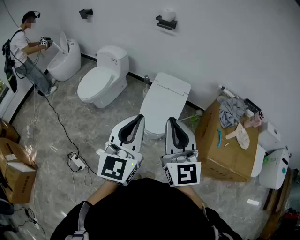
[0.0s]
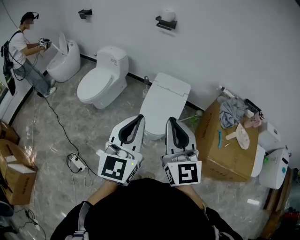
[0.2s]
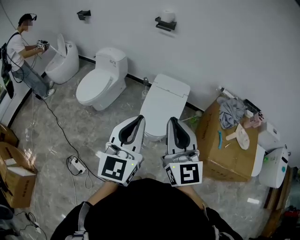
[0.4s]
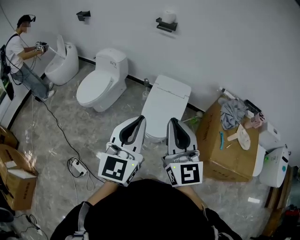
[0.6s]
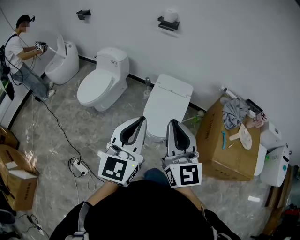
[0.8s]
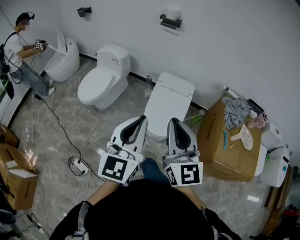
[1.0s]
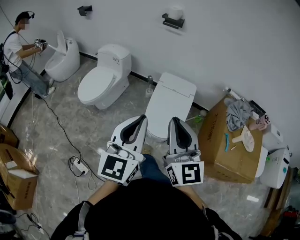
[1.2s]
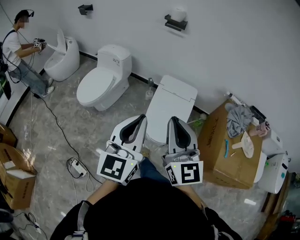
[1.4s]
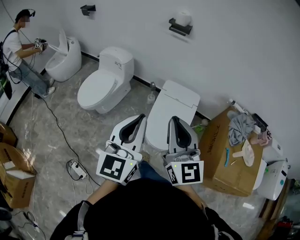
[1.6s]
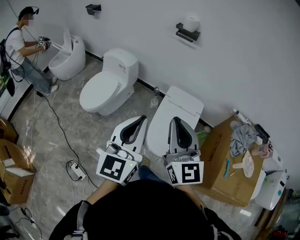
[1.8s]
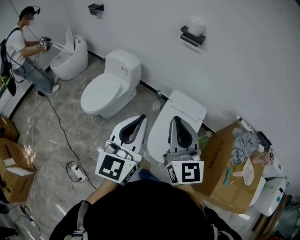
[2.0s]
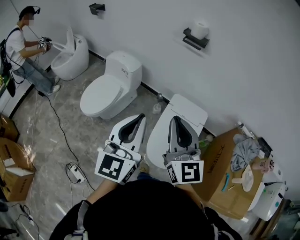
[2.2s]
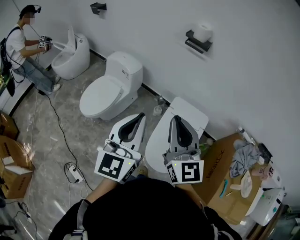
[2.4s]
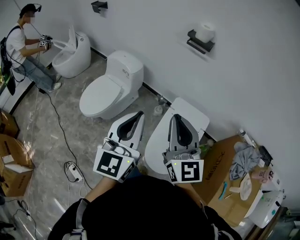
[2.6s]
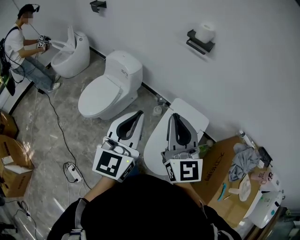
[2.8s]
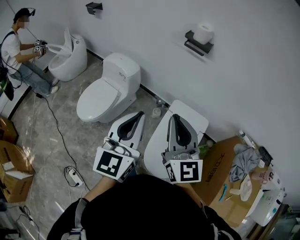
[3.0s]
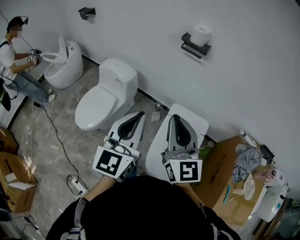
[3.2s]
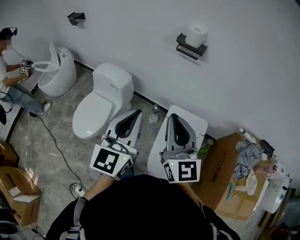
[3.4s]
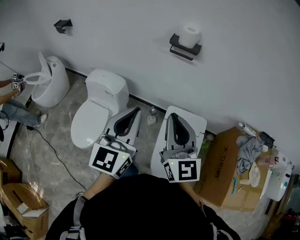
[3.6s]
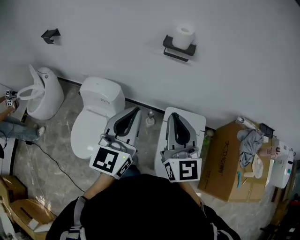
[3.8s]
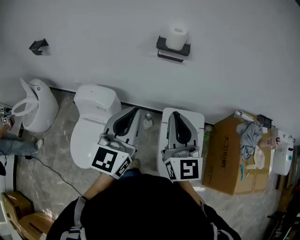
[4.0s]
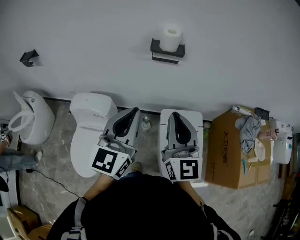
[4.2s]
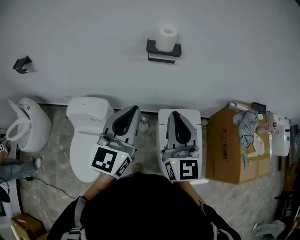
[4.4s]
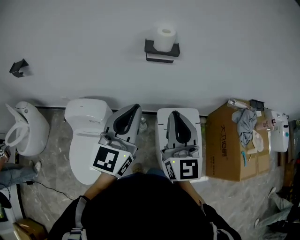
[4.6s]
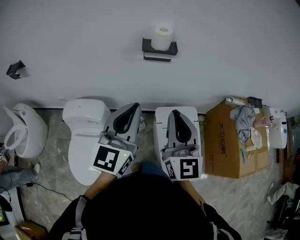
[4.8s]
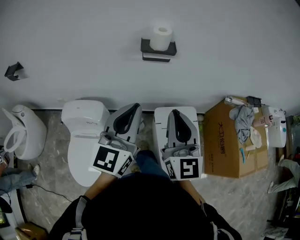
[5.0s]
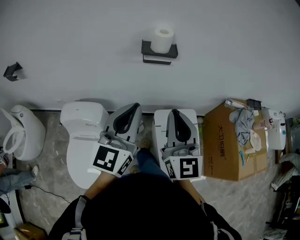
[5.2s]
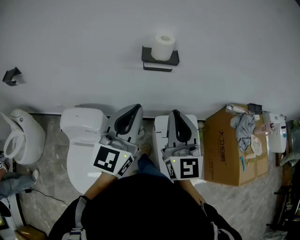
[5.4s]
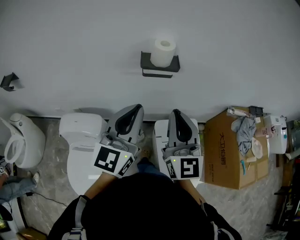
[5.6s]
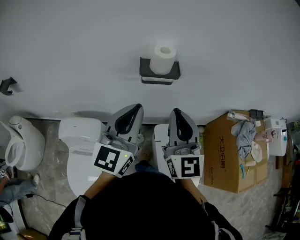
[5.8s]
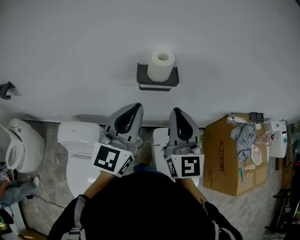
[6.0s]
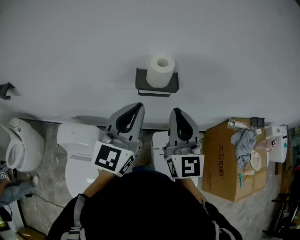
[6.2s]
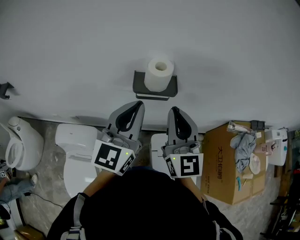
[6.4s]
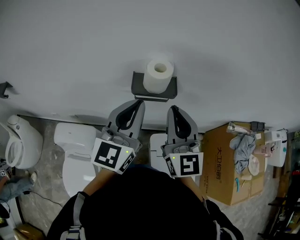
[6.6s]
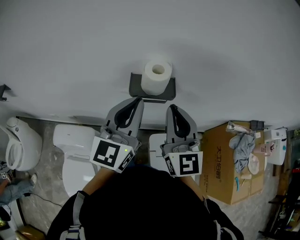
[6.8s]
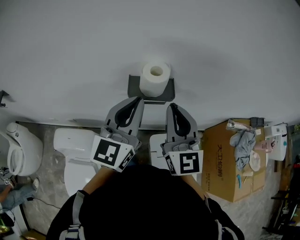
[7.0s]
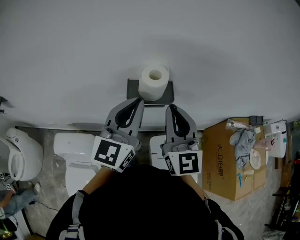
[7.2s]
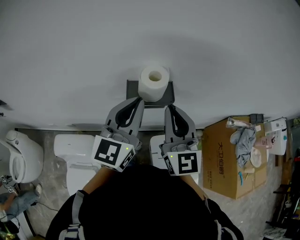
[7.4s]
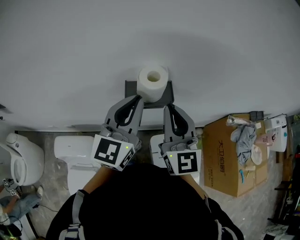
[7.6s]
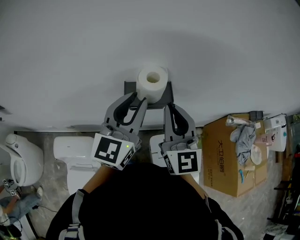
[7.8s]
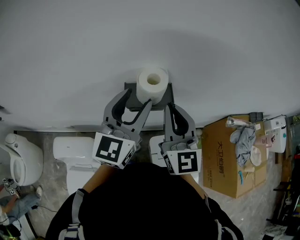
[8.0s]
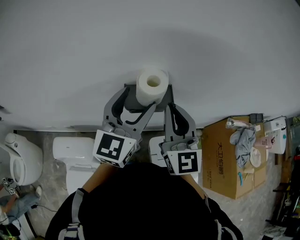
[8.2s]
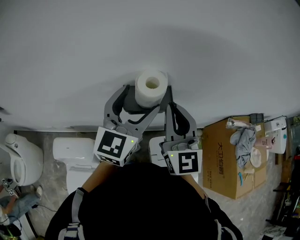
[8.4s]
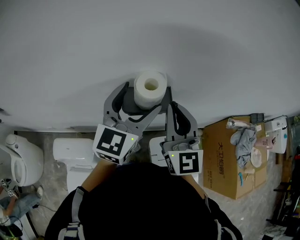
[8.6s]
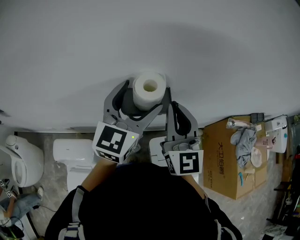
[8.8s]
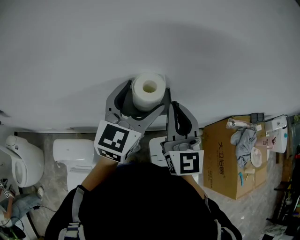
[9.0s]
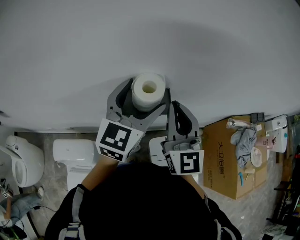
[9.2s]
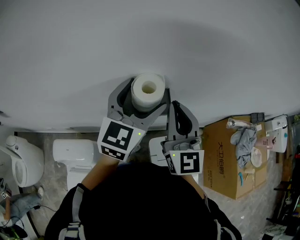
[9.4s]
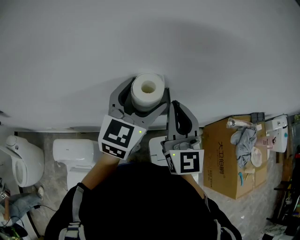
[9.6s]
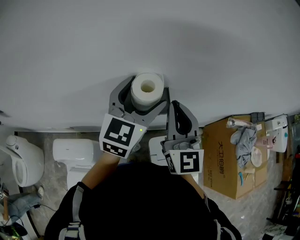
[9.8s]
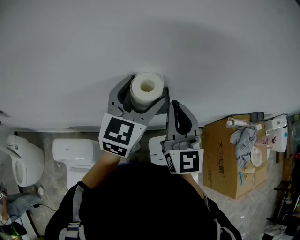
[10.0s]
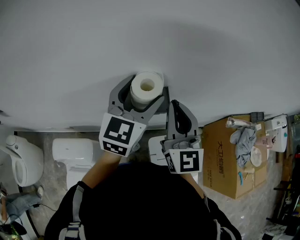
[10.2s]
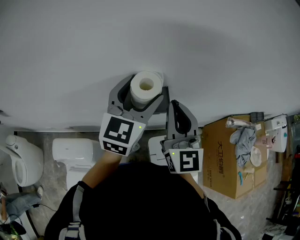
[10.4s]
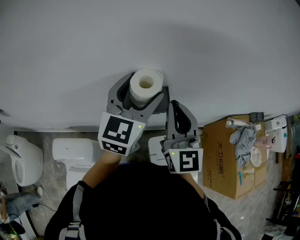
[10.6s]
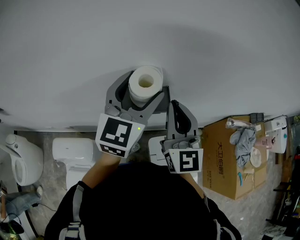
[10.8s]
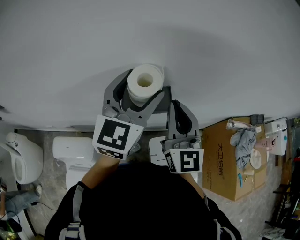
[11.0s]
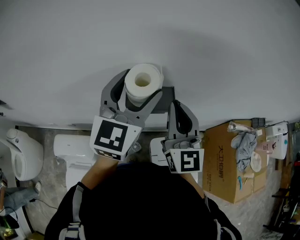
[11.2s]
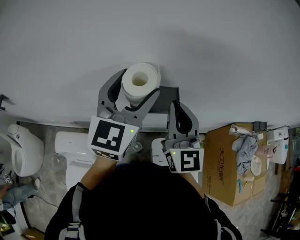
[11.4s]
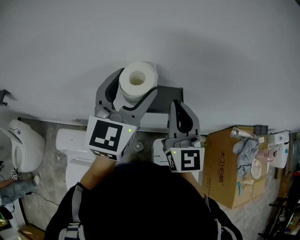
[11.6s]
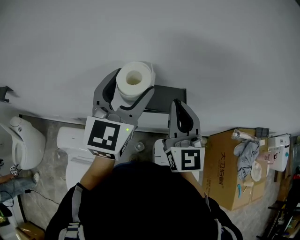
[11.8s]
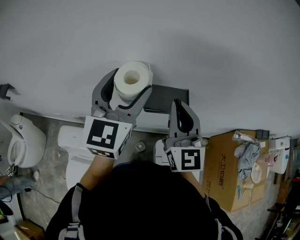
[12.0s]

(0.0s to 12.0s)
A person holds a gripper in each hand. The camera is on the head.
0.0s - 1.6s: Both grippers move forward and to the left, approximately 20 cm.
1.6s - 3.0s: The grippers both shift forward by approximately 25 cm.
3.0s - 4.4s: The left gripper changes place by roughly 30 cm, and changes its angle by roughly 30 degrees, while the right gripper changes place by some 20 cm, and changes its angle by roughly 30 degrees.
4.4s - 6.0s: The two grippers go some 20 cm forward.
6.0s - 7.6s: The grippers both shift forward by some 10 cm.
7.6s - 9.0s: The left gripper goes about 5 cm forward, and opens.
9.0s - 10.4s: The grippers move only a little.
10.4s - 12.0s: The right gripper travels to the left by some 5 cm; the left gripper shifts about 10 cm to the left.

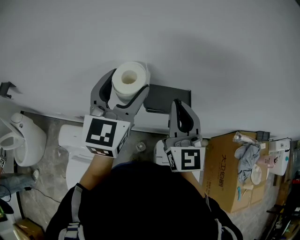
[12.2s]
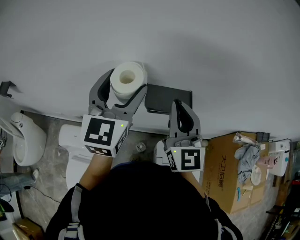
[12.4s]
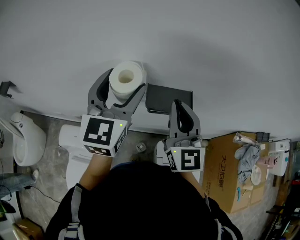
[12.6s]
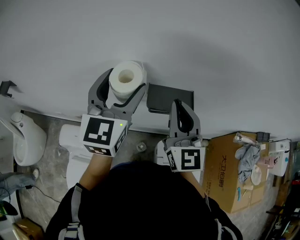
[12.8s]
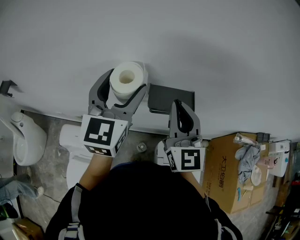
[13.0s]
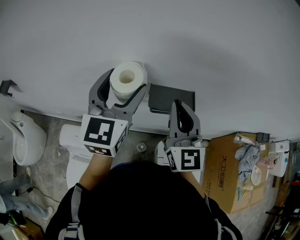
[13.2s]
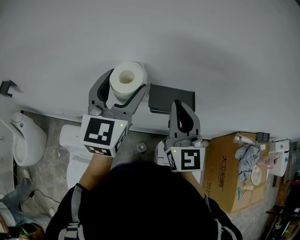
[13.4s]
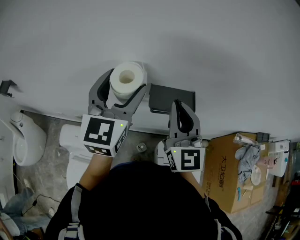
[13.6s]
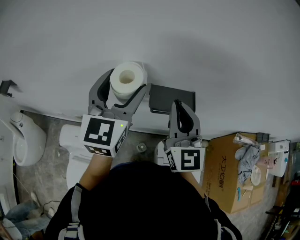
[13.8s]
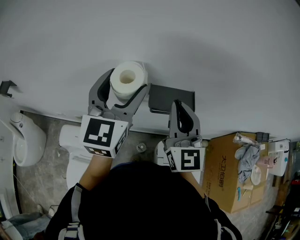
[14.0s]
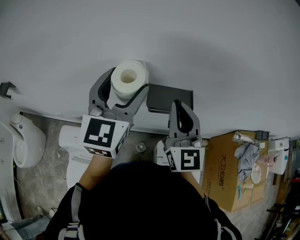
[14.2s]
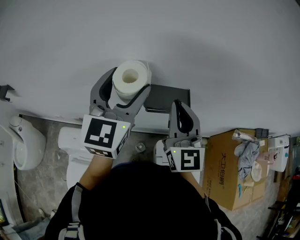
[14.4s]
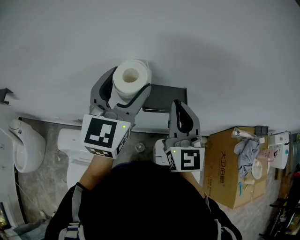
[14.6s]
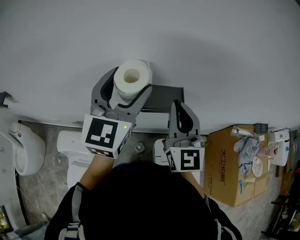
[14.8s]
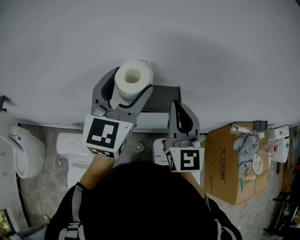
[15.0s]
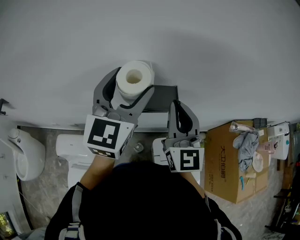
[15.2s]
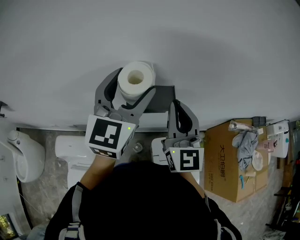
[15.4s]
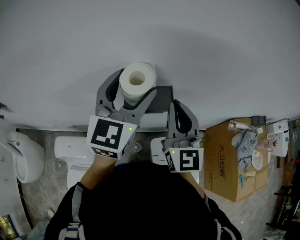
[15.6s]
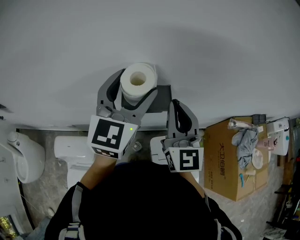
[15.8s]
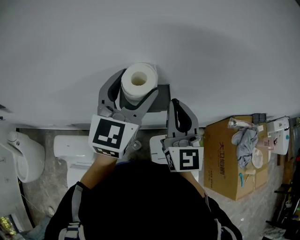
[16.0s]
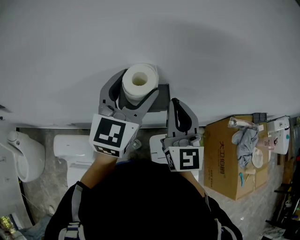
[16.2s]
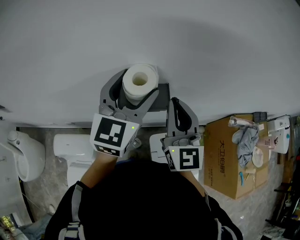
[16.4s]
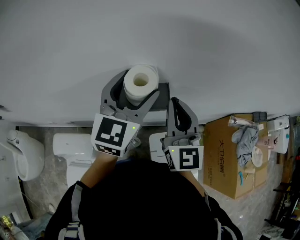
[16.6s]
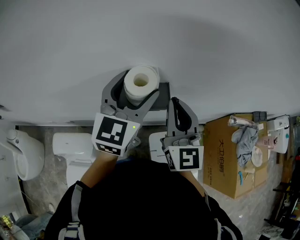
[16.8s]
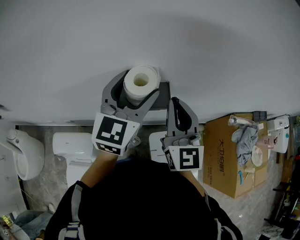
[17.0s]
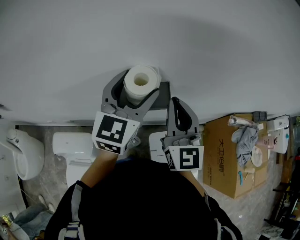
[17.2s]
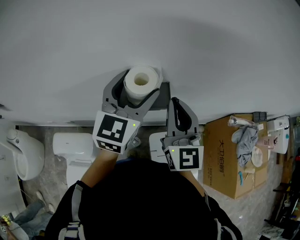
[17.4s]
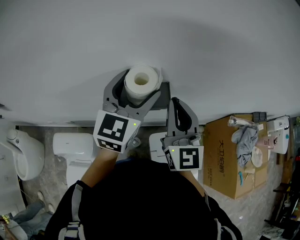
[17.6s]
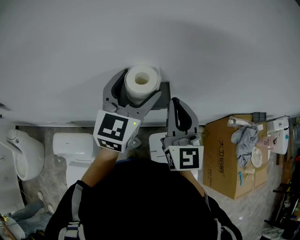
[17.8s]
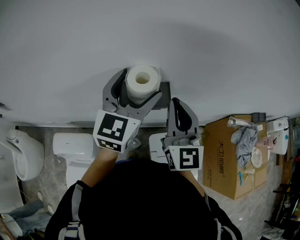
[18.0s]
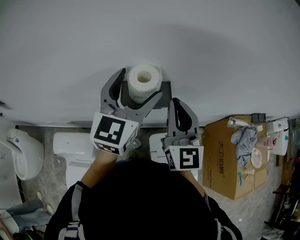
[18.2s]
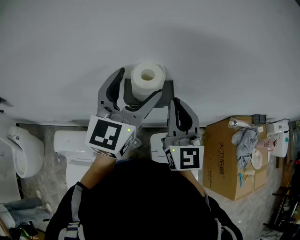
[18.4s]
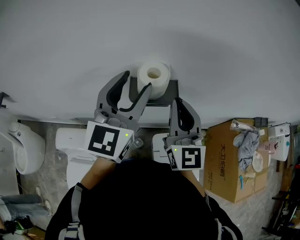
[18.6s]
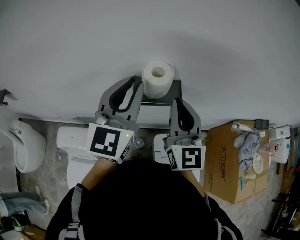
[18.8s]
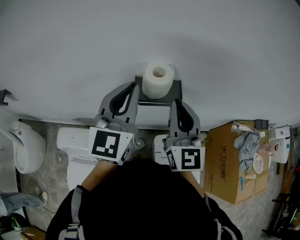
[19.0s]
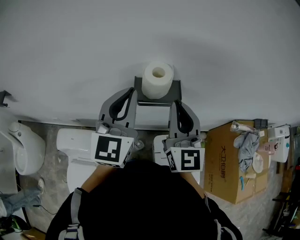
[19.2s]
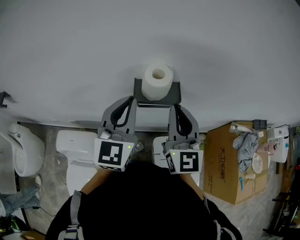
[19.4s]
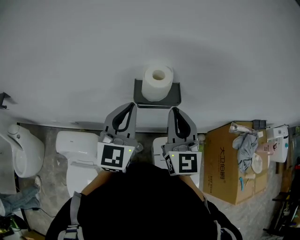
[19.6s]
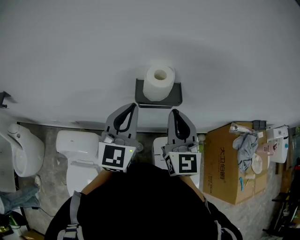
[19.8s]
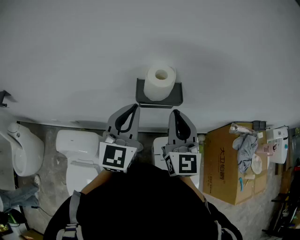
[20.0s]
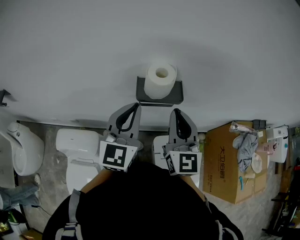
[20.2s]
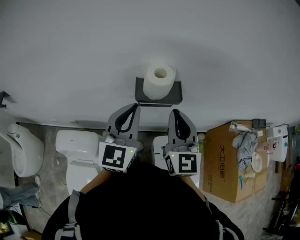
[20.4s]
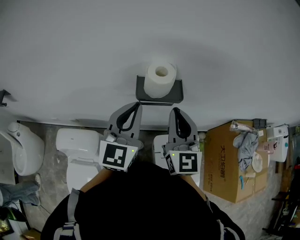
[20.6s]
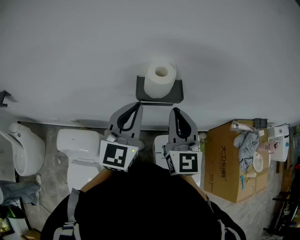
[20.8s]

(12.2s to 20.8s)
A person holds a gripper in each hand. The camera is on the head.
12.2s - 13.6s: The grippers stay close to where they were, moving slightly.
13.6s - 15.0s: The grippers both shift to the right by roughly 5 cm.
15.0s - 16.6s: The left gripper shifts approximately 5 cm to the right.
16.6s - 18.0s: The two grippers keep their place.
18.0s - 19.4s: The left gripper heads backward and to the left, covering some 10 cm, and closes its fingers; the right gripper changes place by roughly 5 cm.
19.4s - 20.8s: The grippers make only small movements.

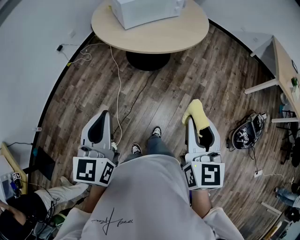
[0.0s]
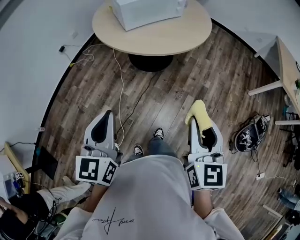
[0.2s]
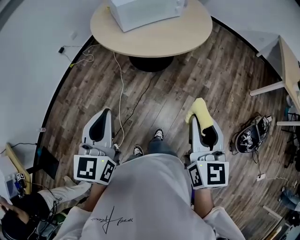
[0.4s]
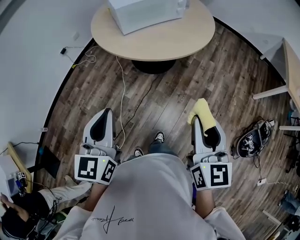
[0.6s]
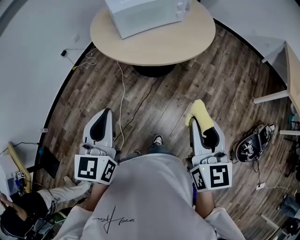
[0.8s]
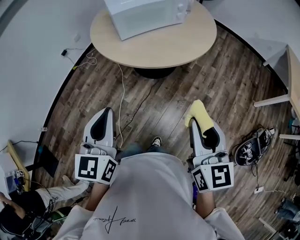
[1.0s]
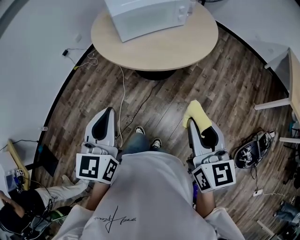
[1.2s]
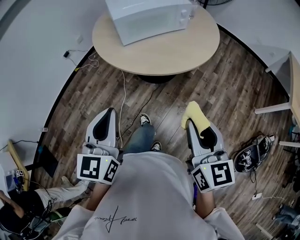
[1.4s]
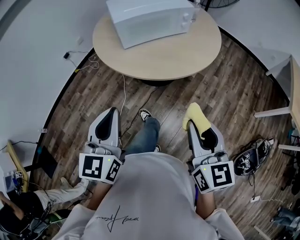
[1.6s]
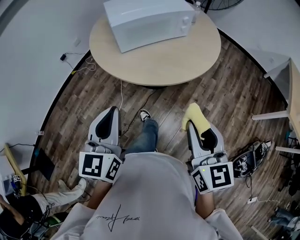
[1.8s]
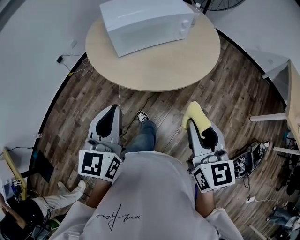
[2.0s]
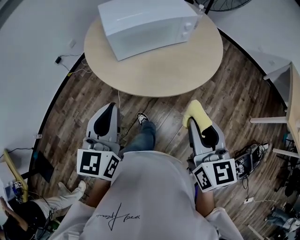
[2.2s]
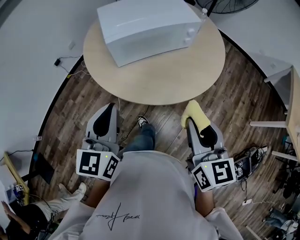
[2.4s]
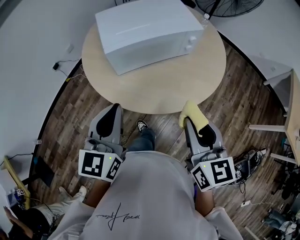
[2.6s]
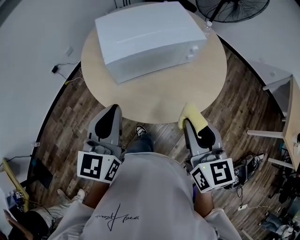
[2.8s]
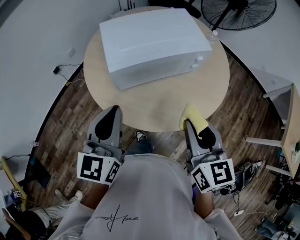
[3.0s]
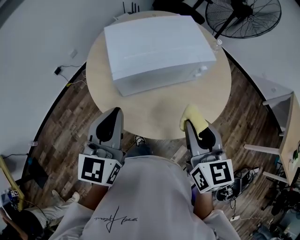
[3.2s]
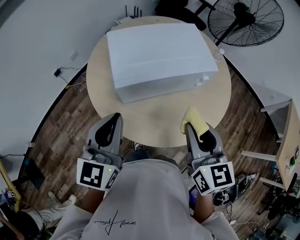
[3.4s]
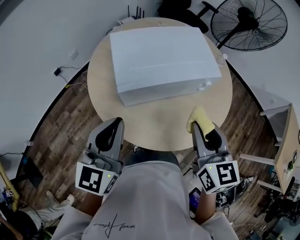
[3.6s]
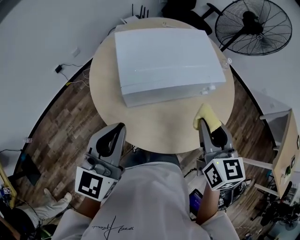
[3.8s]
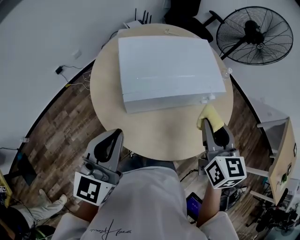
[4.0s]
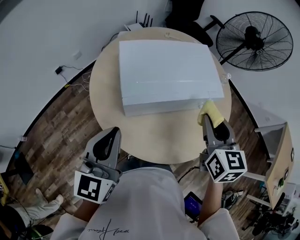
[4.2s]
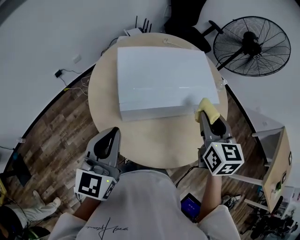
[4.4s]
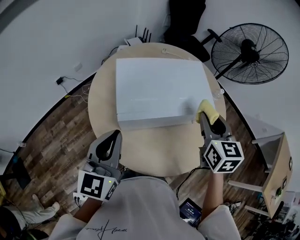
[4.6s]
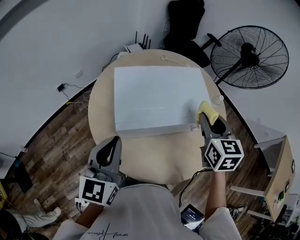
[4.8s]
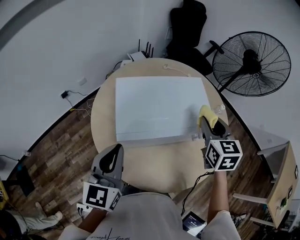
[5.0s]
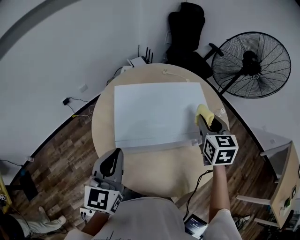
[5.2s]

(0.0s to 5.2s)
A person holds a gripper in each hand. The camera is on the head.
0.0s - 1.8s: The right gripper is displaced forward by roughly 25 cm; the left gripper travels forward and to the right by approximately 25 cm.
1.8s - 3.4s: Both grippers travel together forward, roughly 35 cm.
3.4s - 5.2s: The right gripper goes approximately 30 cm forward. Meanwhile the left gripper is displaced forward by approximately 10 cm.
